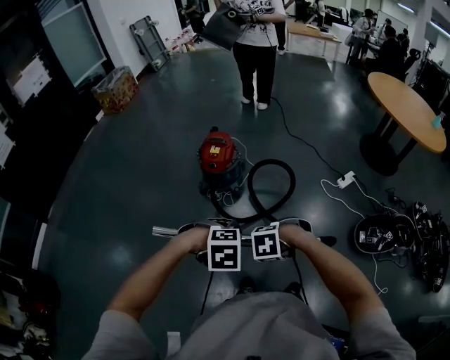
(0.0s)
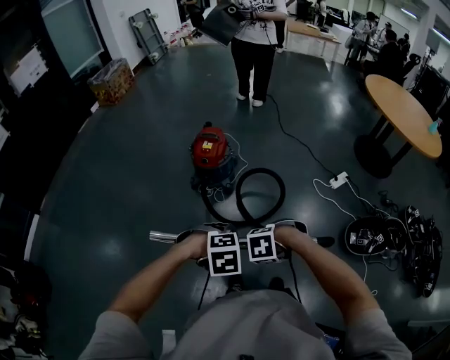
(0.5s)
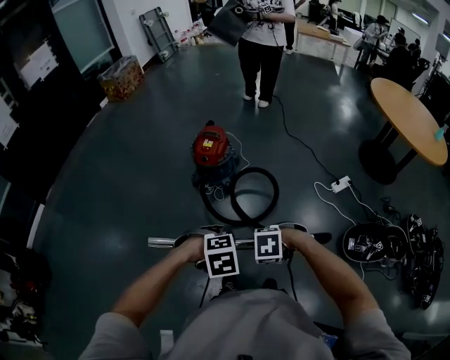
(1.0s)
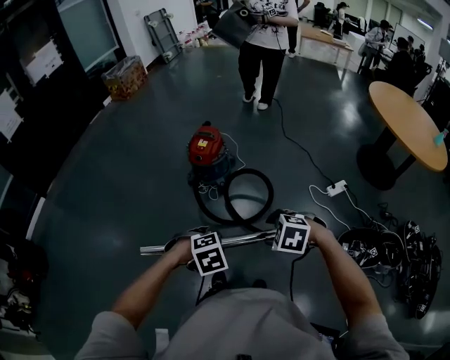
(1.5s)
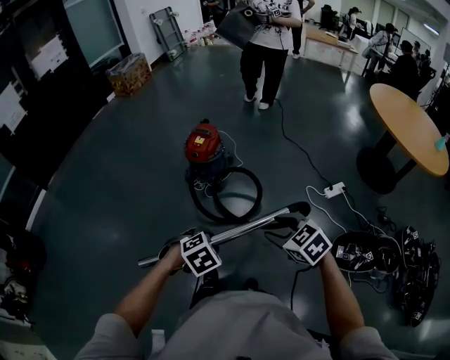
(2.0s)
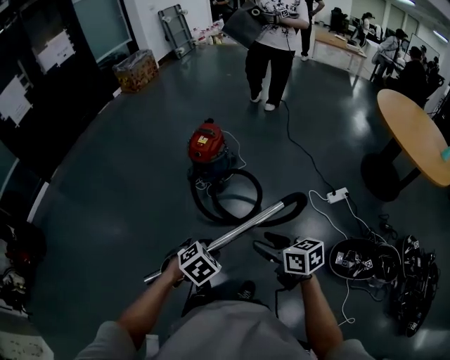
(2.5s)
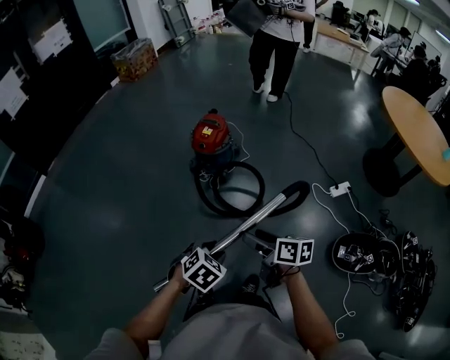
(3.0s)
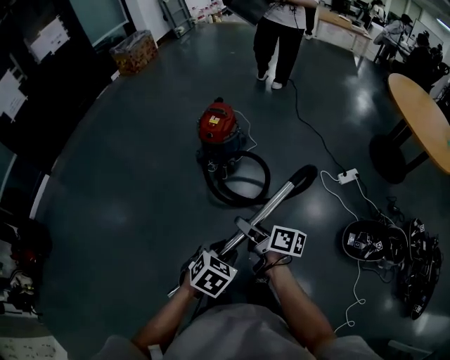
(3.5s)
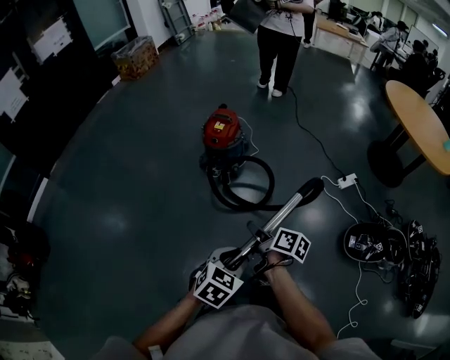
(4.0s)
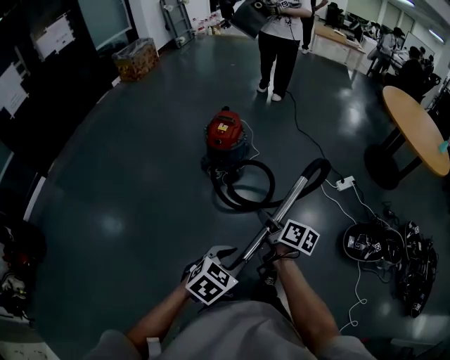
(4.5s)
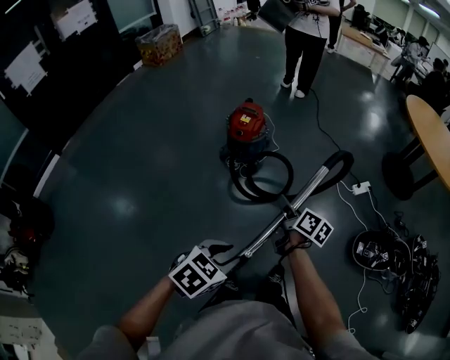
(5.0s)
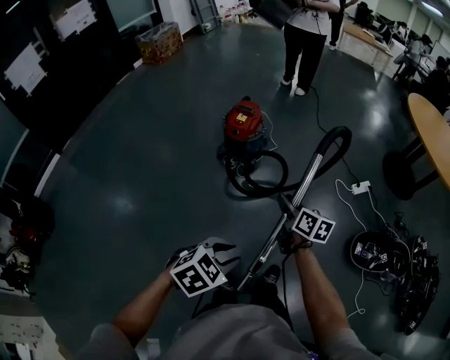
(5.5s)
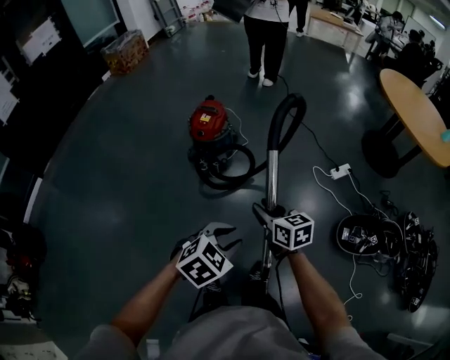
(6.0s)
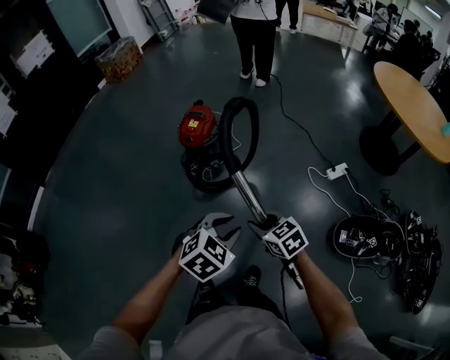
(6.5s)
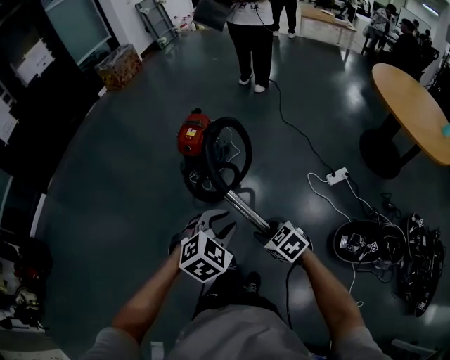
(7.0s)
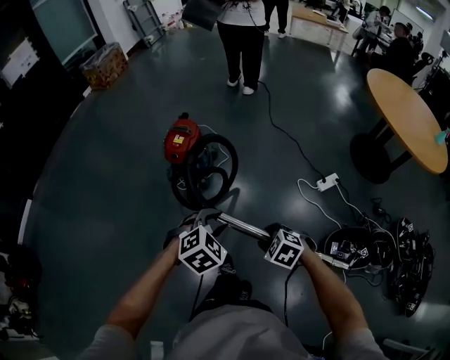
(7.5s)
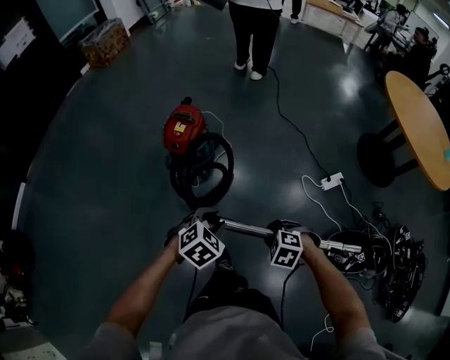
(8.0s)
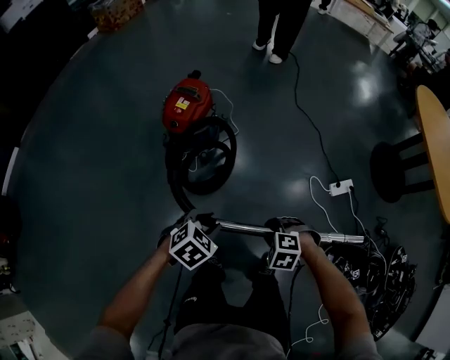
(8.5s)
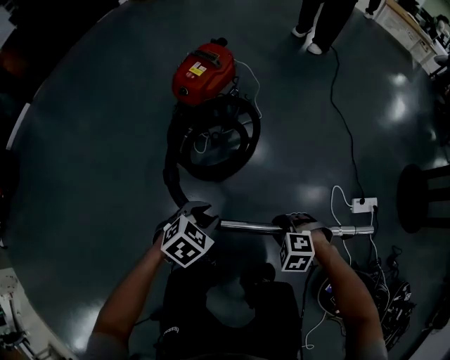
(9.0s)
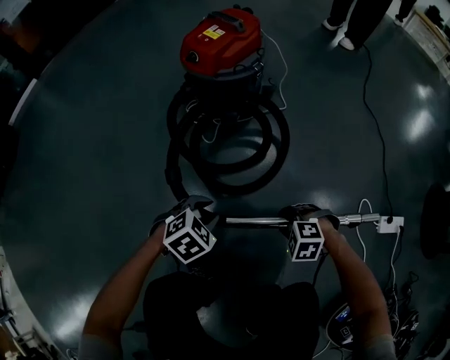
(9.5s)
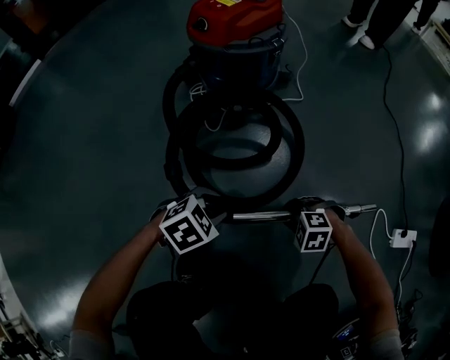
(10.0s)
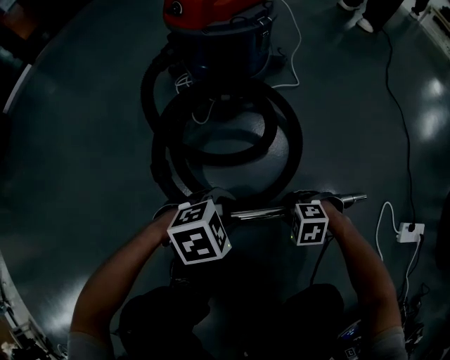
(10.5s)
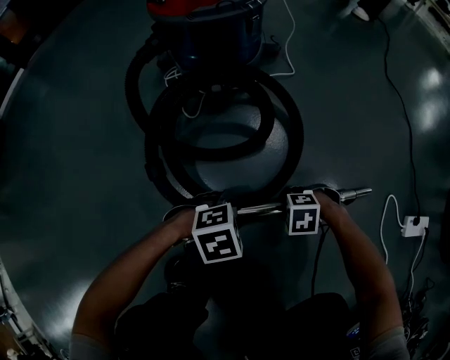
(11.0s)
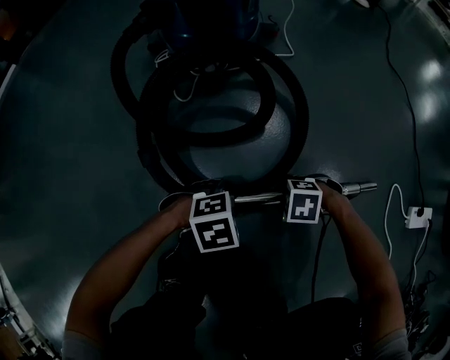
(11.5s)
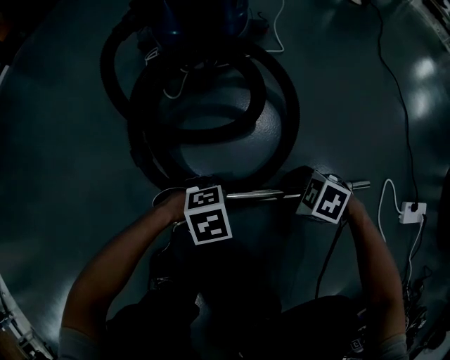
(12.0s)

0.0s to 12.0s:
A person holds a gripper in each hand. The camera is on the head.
0.0s to 2.0s: The right gripper changes place by some 25 cm, points its fingers approximately 40 degrees further upward, and opens its fingers. The left gripper changes place by some 15 cm, and turns by some 40 degrees.
2.0s to 4.0s: The left gripper is displaced to the left and backward by roughly 10 cm, and turns by roughly 30 degrees. Meanwhile the right gripper heads to the left and downward, covering approximately 20 cm, and twists some 80 degrees clockwise, seen from behind.
4.0s to 6.0s: The right gripper heads forward and to the right, covering roughly 10 cm, and twists about 50 degrees counterclockwise, seen from behind. Meanwhile the left gripper shifts some 5 cm forward, and travels to the left and back again, about 10 cm each way.
6.0s to 8.0s: The left gripper goes approximately 30 cm forward and downward; the right gripper goes about 20 cm to the right, downward and forward, and tips its fingers downward by some 50 degrees.
8.0s to 10.0s: The two grippers go about 60 cm downward. The right gripper turns by about 40 degrees, while the left gripper swivels roughly 20 degrees.
10.0s to 12.0s: The left gripper goes about 15 cm downward, and rotates some 20 degrees. The right gripper heads downward, covering some 5 cm, and changes its angle by approximately 30 degrees.

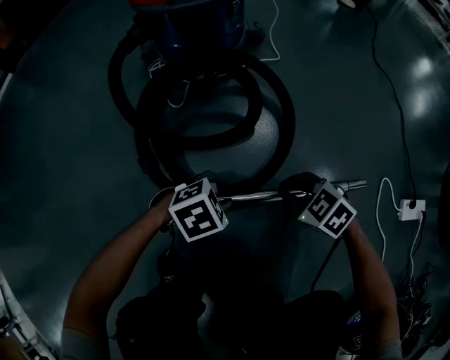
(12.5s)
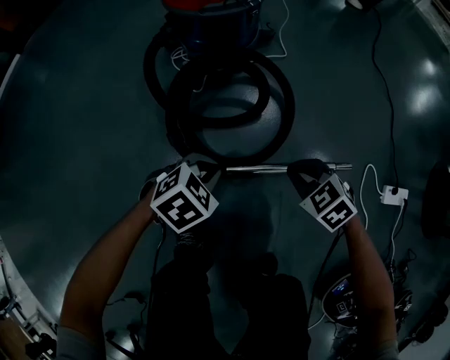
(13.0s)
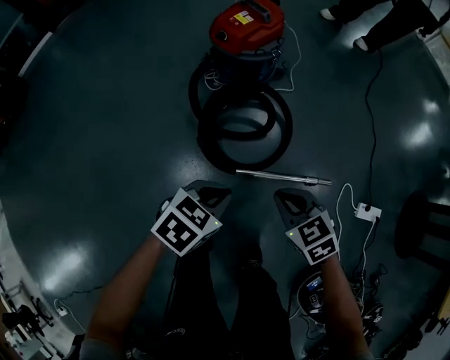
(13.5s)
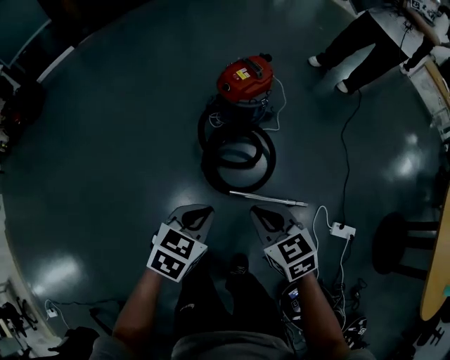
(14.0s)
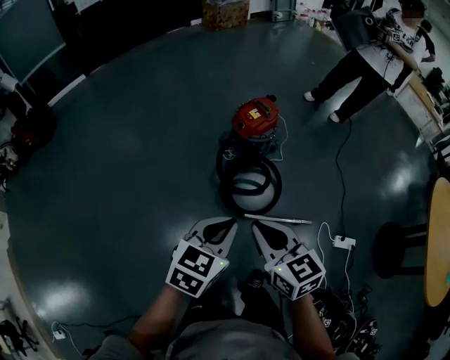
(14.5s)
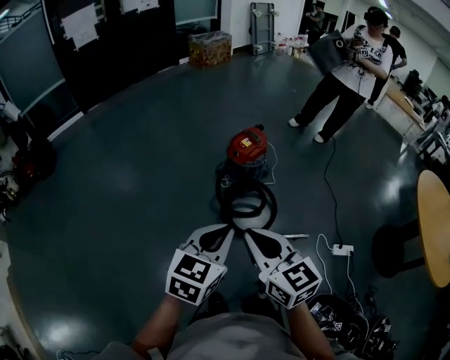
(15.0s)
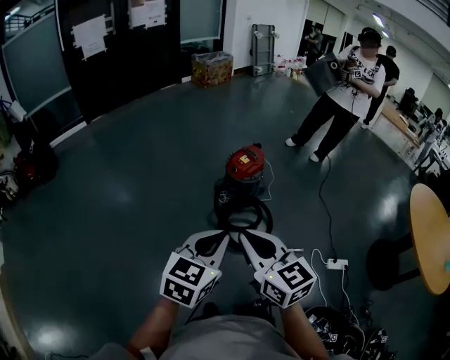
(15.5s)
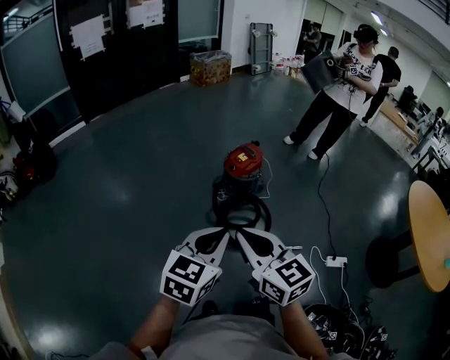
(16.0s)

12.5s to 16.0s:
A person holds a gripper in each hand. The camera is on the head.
12.5s to 14.5s: Both grippers travel together upward, about 80 cm. The right gripper tips its fingers upward by approximately 30 degrees. Meanwhile the left gripper angles its fingers upward, by approximately 40 degrees, and closes its fingers.
14.5s to 16.0s: The right gripper goes about 20 cm upward, backward and to the left. The left gripper shifts some 15 cm upward and backward.

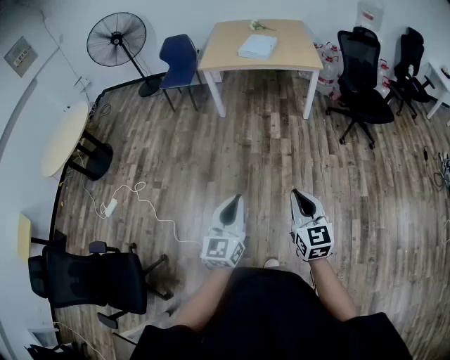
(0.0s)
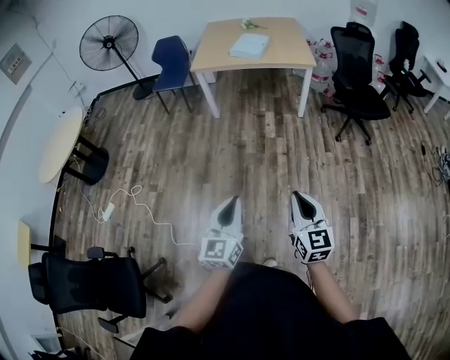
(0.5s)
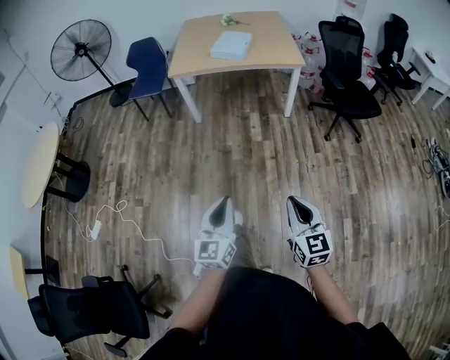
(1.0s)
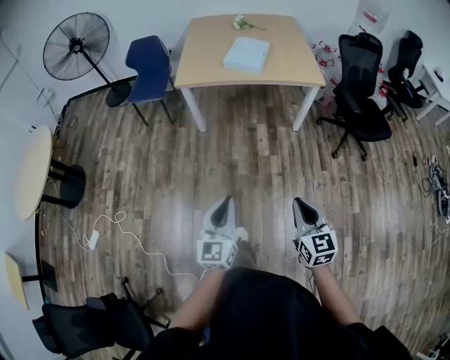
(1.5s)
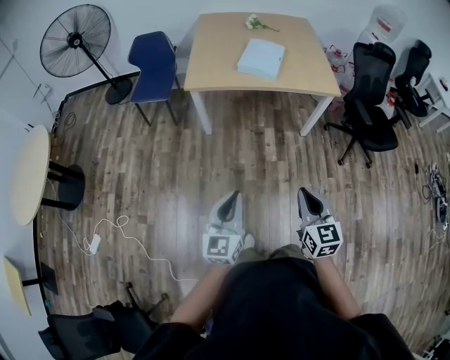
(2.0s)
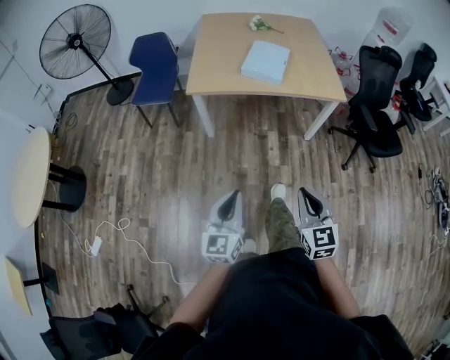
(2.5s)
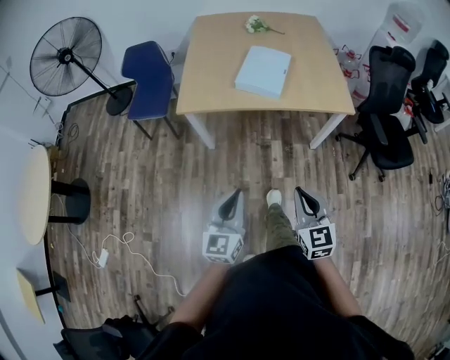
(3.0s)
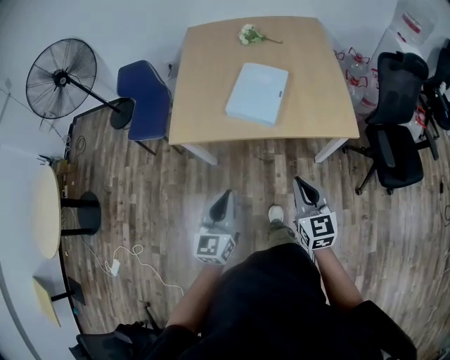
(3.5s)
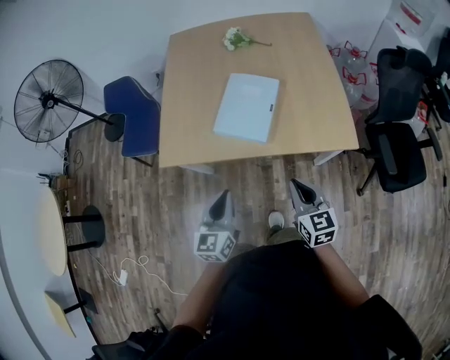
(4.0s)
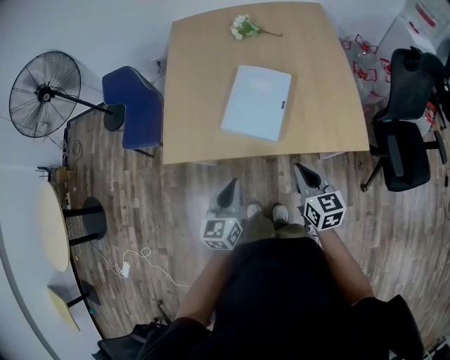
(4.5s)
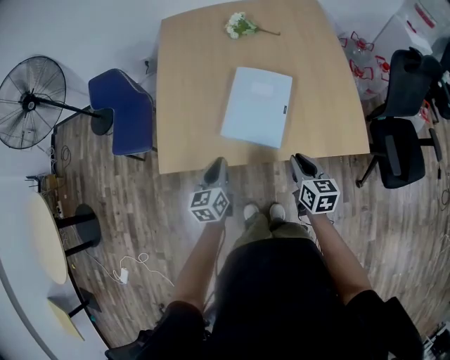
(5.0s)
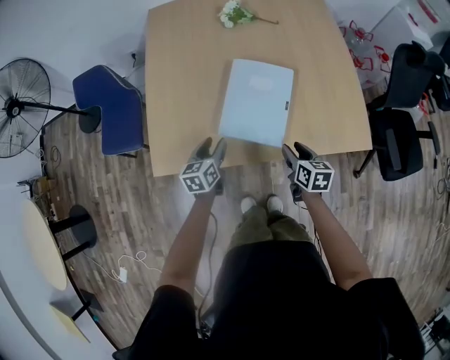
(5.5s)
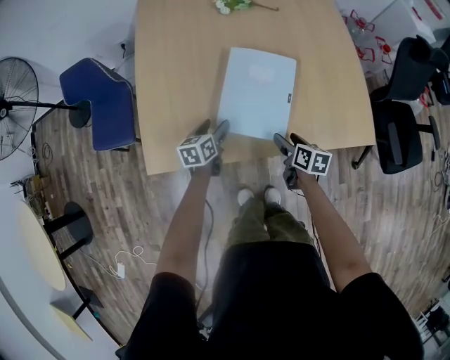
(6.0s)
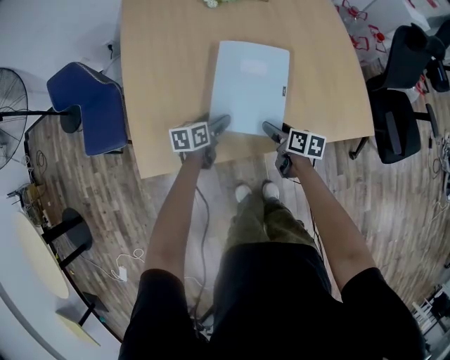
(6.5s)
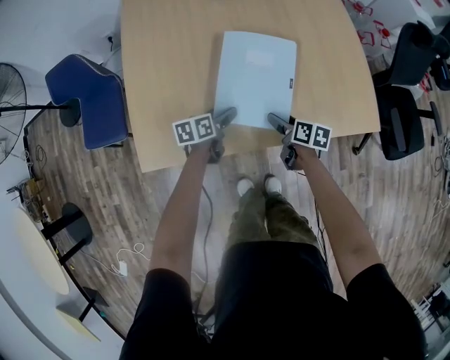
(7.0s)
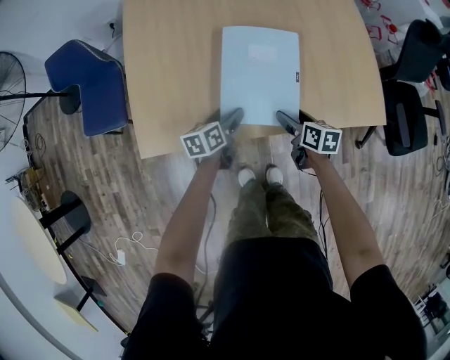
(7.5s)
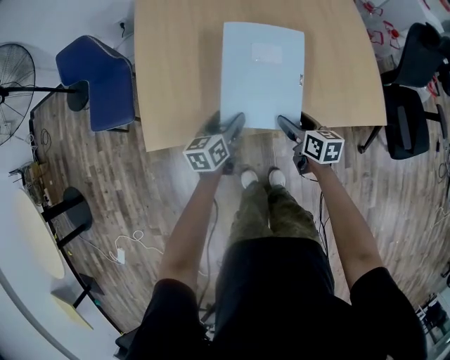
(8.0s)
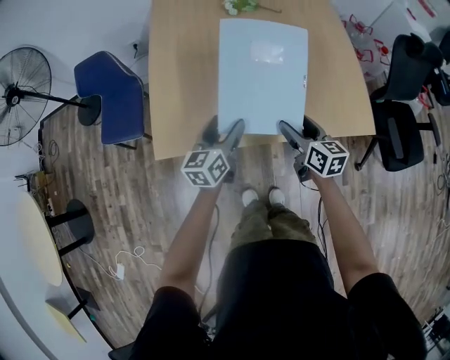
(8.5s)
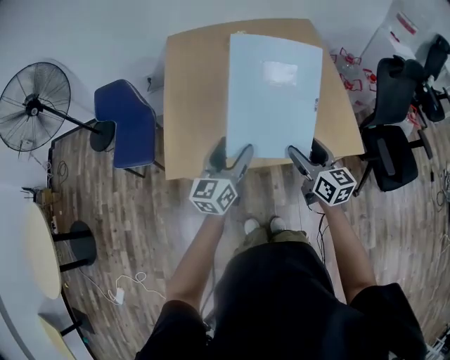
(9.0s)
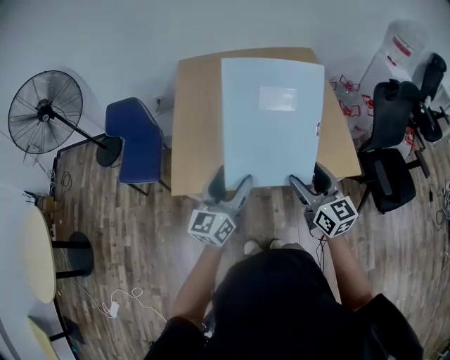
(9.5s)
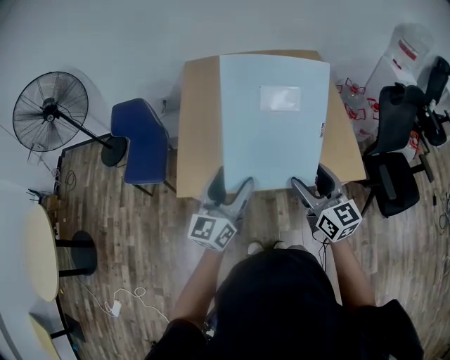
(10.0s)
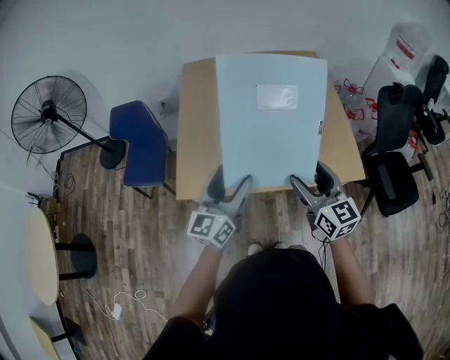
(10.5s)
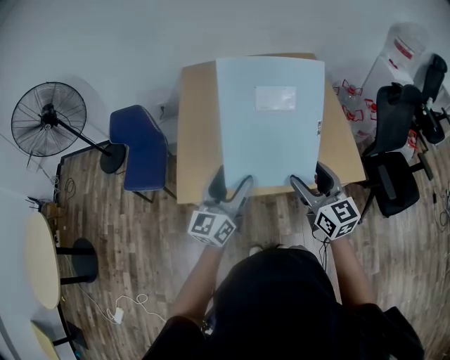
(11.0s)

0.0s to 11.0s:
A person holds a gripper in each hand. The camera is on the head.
0.0s to 2.0s: The two grippers travel together, forward, roughly 60 cm.
2.0s to 3.5s: The pair of grippers is taken forward, some 50 cm.
3.5s to 5.5s: The grippers both shift forward and downward by some 50 cm. The right gripper swivels approximately 40 degrees, and opens. The left gripper changes its angle by about 30 degrees, and opens its fingers.
5.5s to 7.5s: The grippers both shift downward by about 10 cm. The right gripper opens; the left gripper swivels roughly 20 degrees, and opens its fingers.
7.5s to 9.0s: Both grippers travel together upward, some 30 cm. The right gripper turns by approximately 40 degrees. The left gripper angles its fingers upward, by some 30 degrees.
9.0s to 11.0s: Both grippers move upward, about 10 cm.
